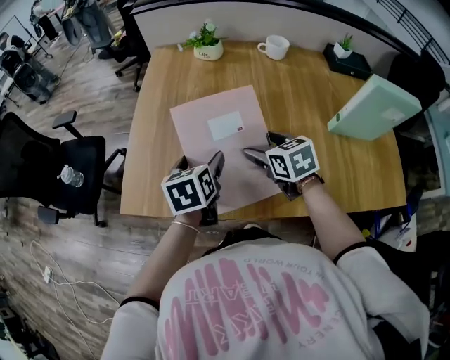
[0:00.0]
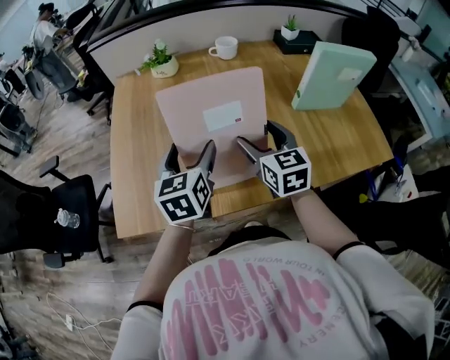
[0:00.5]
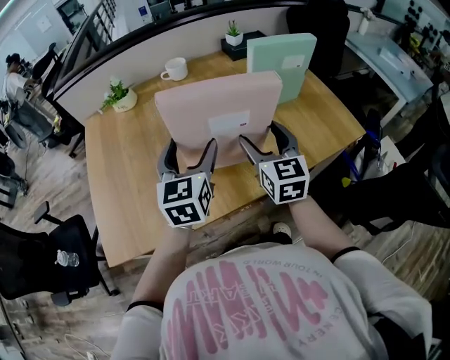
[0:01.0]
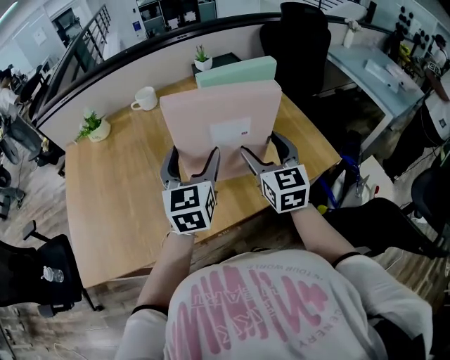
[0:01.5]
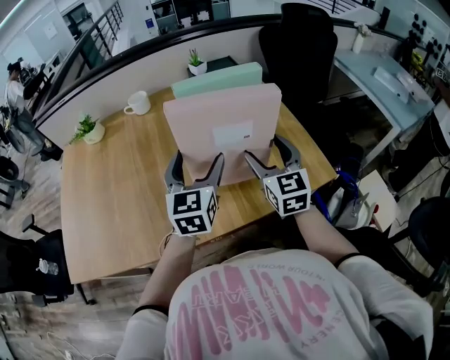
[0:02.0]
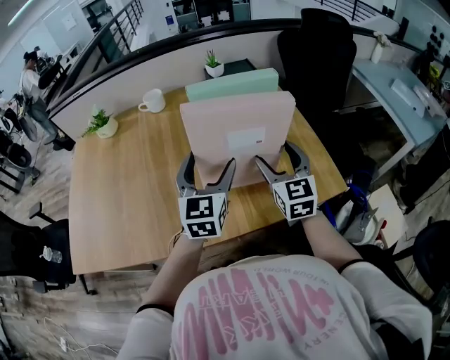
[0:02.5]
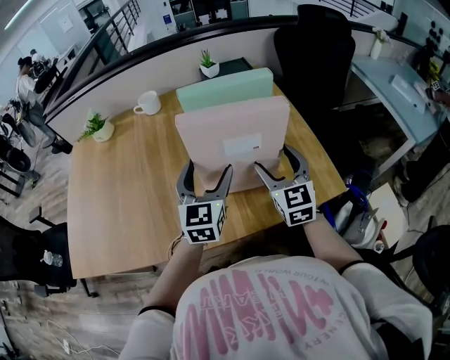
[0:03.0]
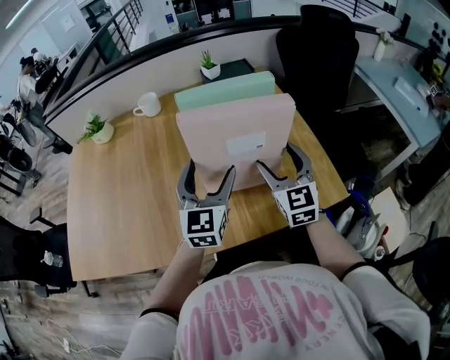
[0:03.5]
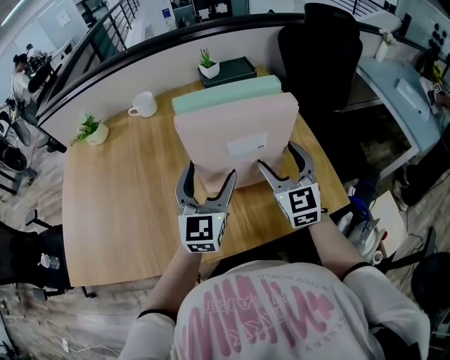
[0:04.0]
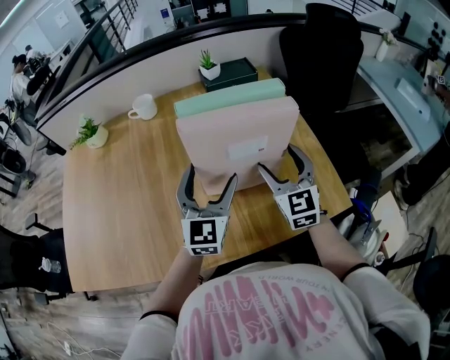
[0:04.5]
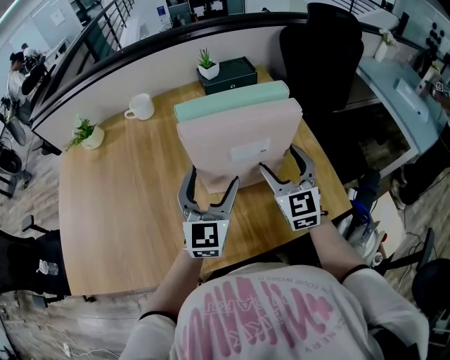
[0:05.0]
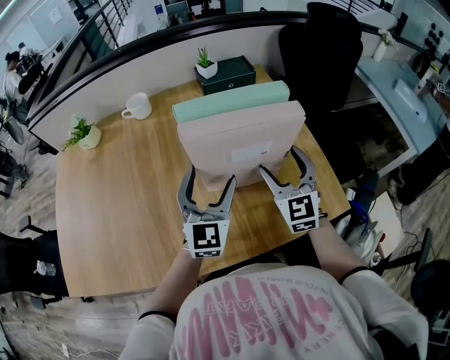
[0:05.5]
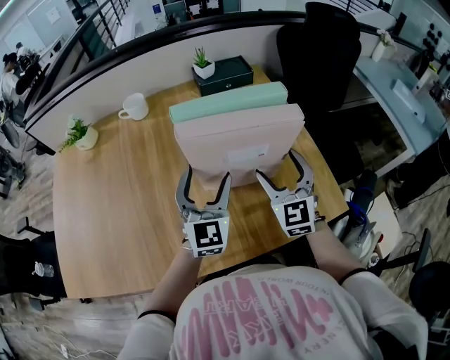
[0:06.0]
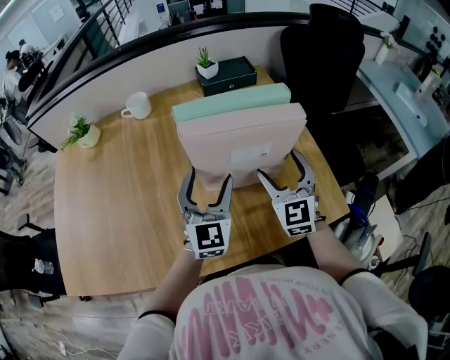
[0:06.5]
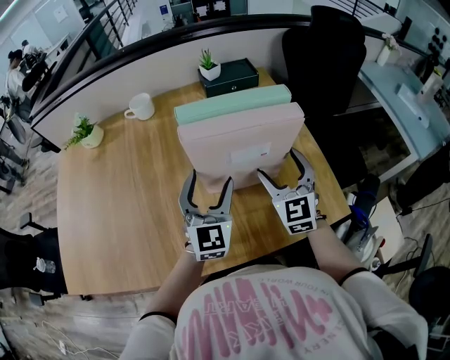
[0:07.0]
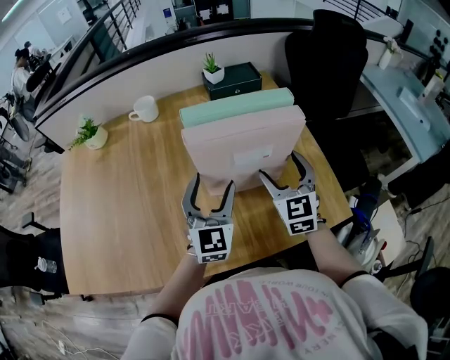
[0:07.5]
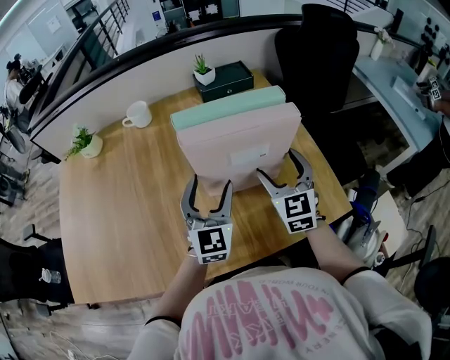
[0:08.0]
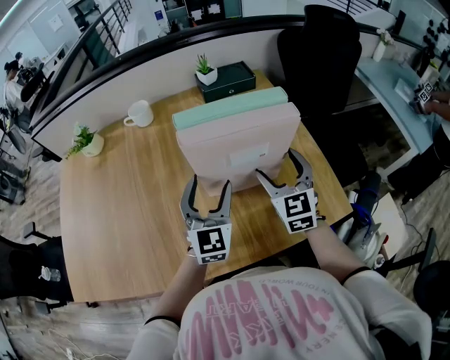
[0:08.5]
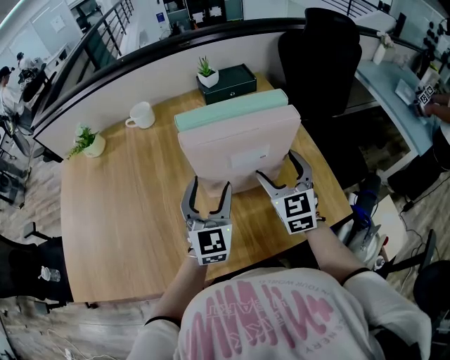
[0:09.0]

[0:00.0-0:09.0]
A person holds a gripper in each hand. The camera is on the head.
0:00.0 to 0:02.0: The two grippers travel together, roughly 50 cm. The right gripper tilts its fingers some 30 degrees upward. Meanwhile the left gripper tilts its fingers about 30 degrees upward.
0:02.0 to 0:04.5: The left gripper moves approximately 5 cm. The right gripper shifts about 5 cm forward.
0:04.5 to 0:09.0: The grippers stay close to where they were, moving slightly.

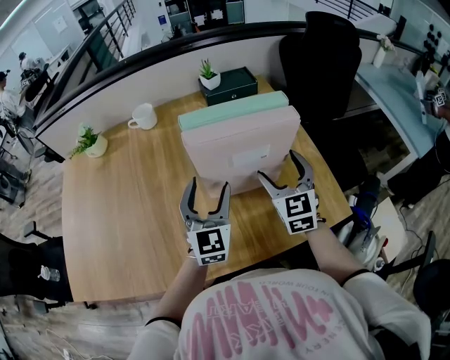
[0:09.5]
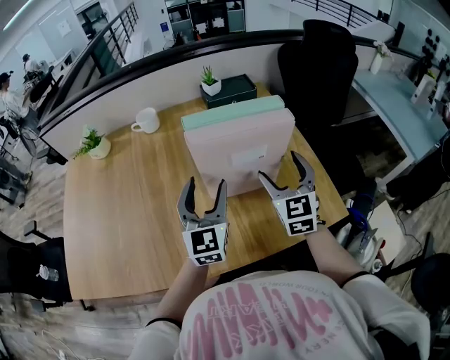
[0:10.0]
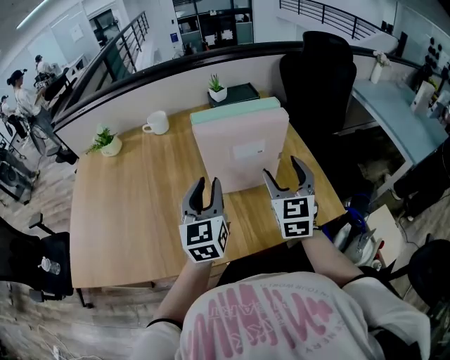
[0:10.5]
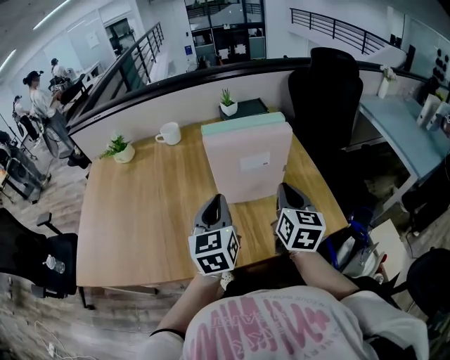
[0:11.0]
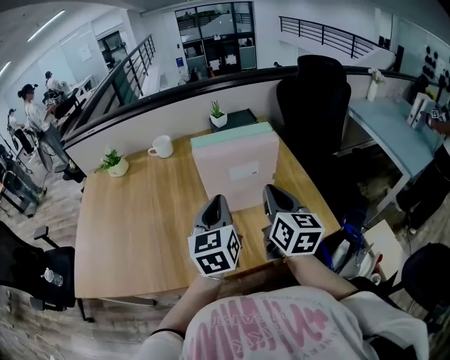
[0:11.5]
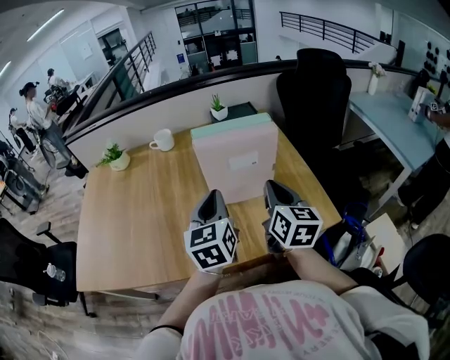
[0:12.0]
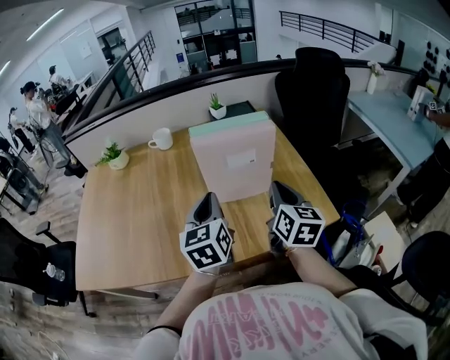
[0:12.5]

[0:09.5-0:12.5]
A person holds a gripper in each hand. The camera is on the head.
0:09.5 to 0:11.0: Both grippers travel together backward and upward, roughly 10 cm. The right gripper changes its angle by approximately 30 degrees, and closes. The left gripper changes its angle by about 20 degrees, and closes.
0:11.0 to 0:12.5: The grippers make only small movements.

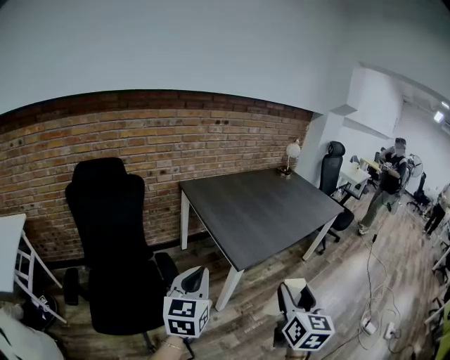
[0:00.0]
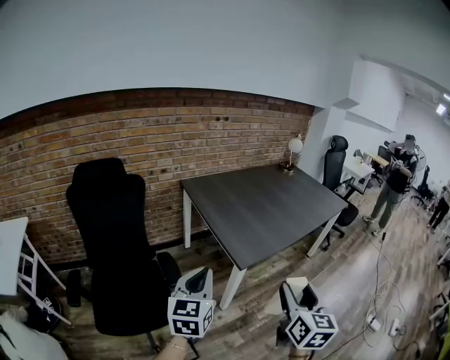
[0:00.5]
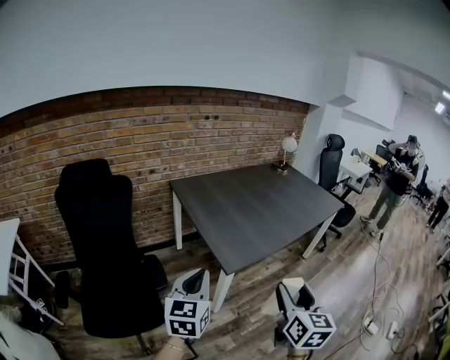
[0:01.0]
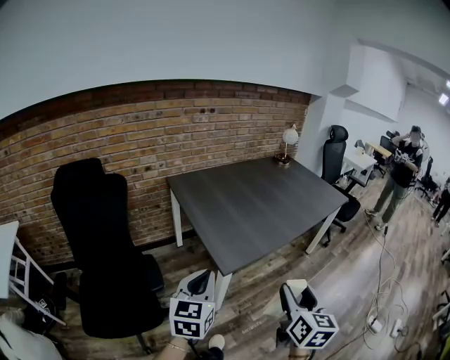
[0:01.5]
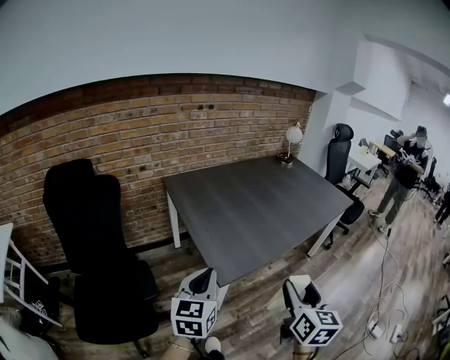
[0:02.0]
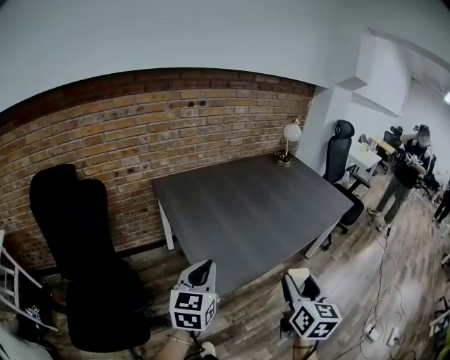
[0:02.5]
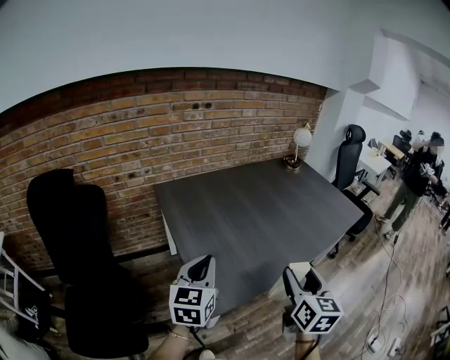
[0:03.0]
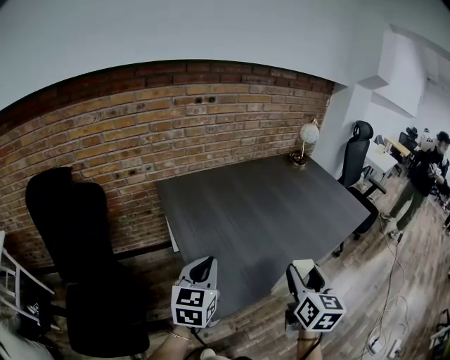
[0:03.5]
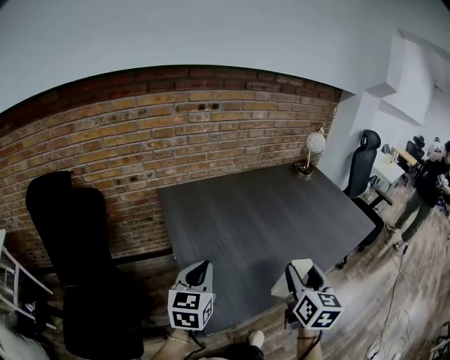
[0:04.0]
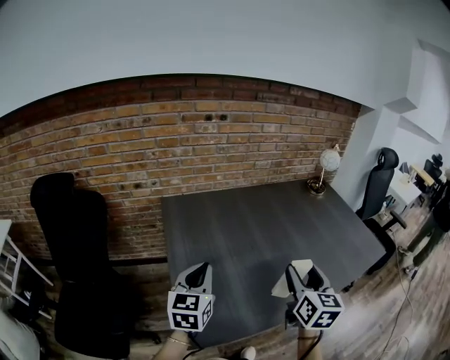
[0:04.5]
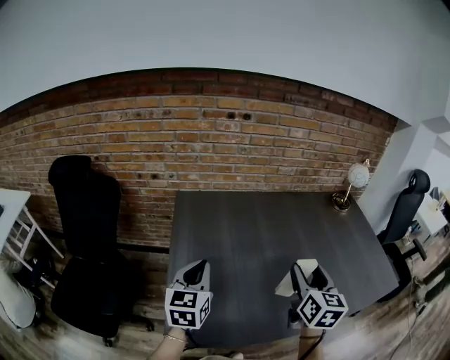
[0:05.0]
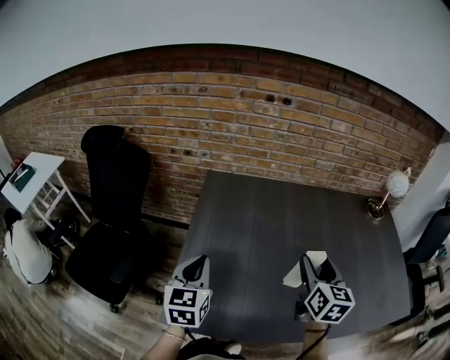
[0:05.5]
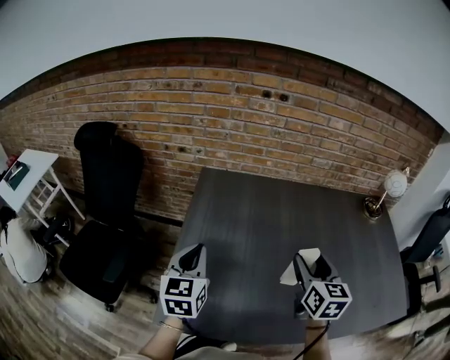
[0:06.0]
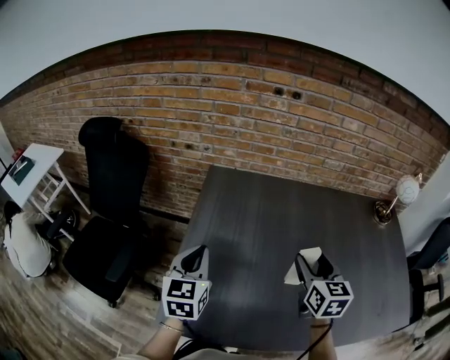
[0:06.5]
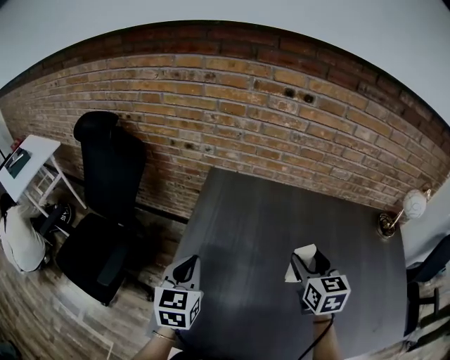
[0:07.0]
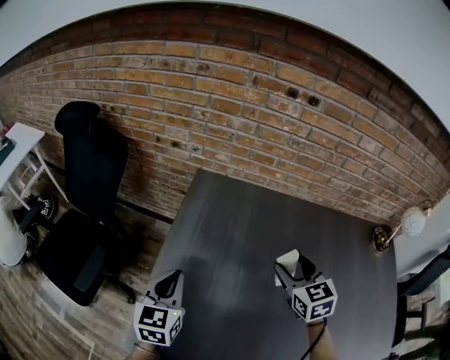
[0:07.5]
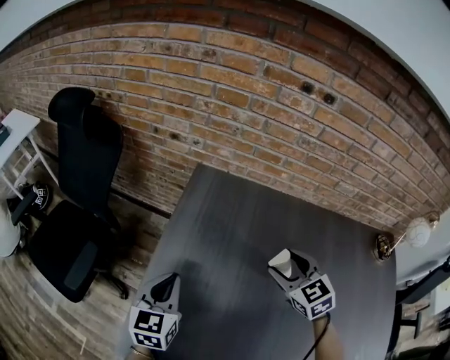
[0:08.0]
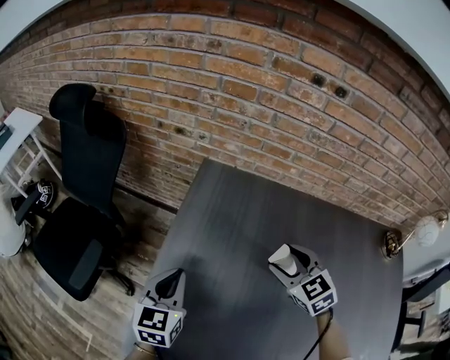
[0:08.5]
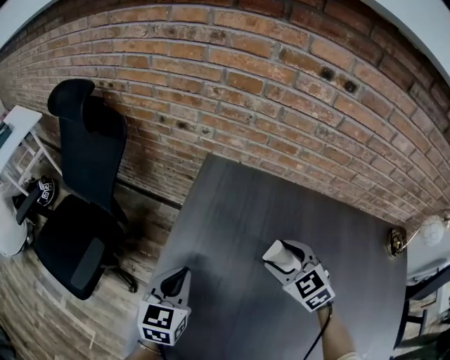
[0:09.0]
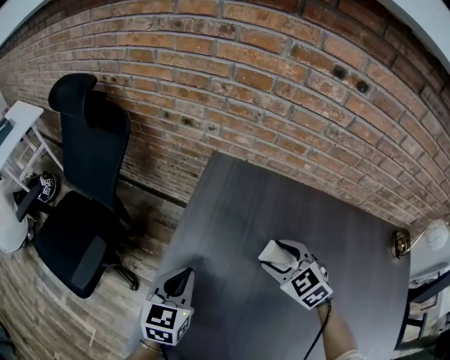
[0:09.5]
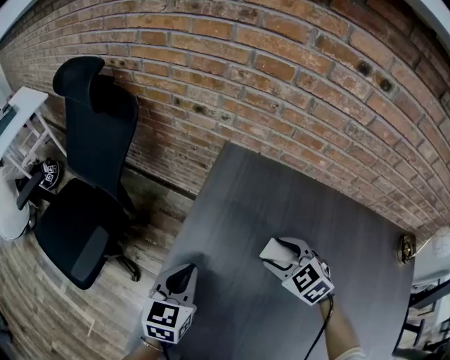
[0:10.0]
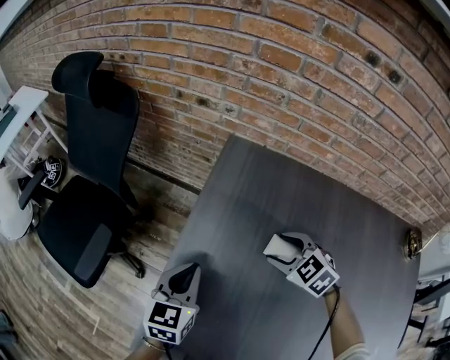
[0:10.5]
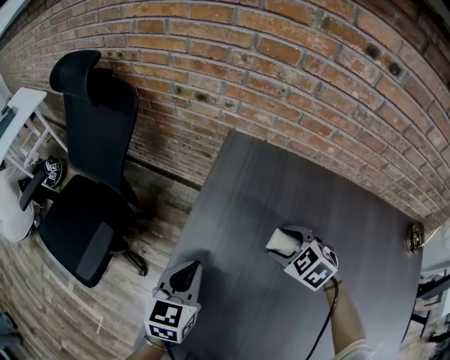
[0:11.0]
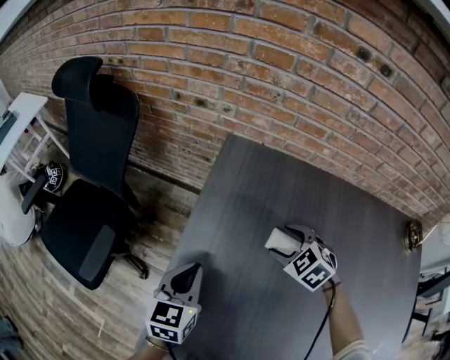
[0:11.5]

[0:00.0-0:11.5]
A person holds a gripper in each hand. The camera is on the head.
0:00.0 to 0:02.0: Both grippers move forward and to the right, roughly 20 cm.
0:02.0 to 0:04.0: The two grippers go about 25 cm forward.
0:04.0 to 0:06.0: The right gripper moves approximately 25 cm, and rotates about 30 degrees. The left gripper moves roughly 10 cm, and rotates some 30 degrees.
0:06.0 to 0:07.5: The right gripper shifts approximately 15 cm forward and downward, and swivels about 30 degrees. The left gripper travels downward and forward by about 10 cm.
0:07.5 to 0:09.5: The left gripper goes some 5 cm downward; the right gripper heads downward, to the left and forward, covering approximately 15 cm, and changes its angle by about 30 degrees.
0:09.5 to 0:11.5: The right gripper moves downward, roughly 5 cm.

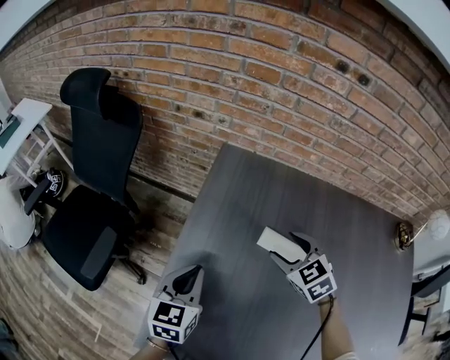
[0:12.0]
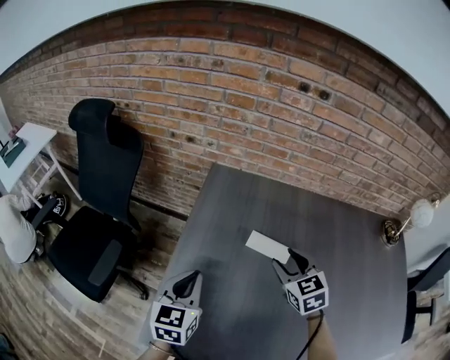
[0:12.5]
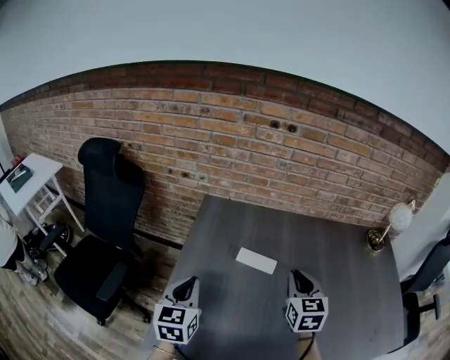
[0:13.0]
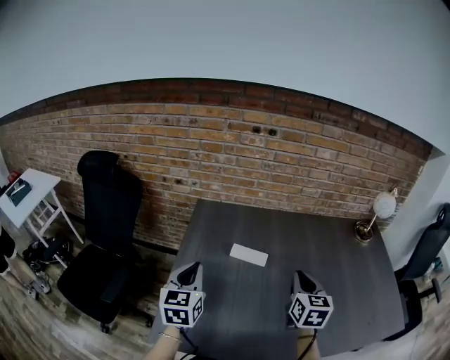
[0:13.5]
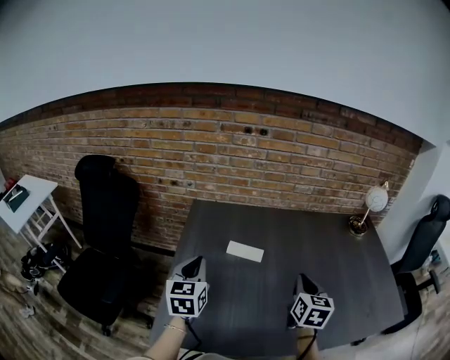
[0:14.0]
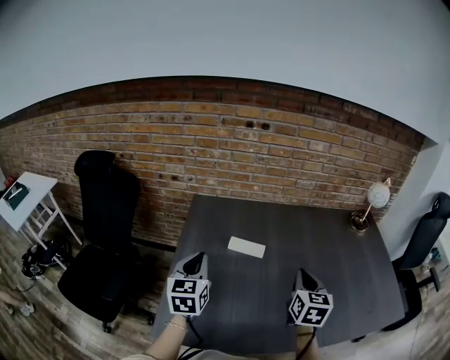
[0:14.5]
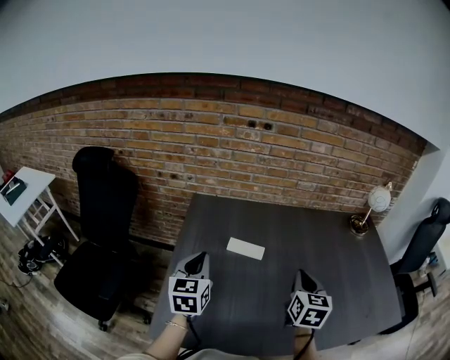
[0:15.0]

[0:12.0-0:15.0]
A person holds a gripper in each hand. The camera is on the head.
0:12.0 to 0:13.5: The right gripper shifts roughly 25 cm backward, to the right and upward, changes its angle by approximately 60 degrees, and closes up; the left gripper travels upward by approximately 15 cm.
0:13.5 to 0:15.0: The grippers move only a little.
